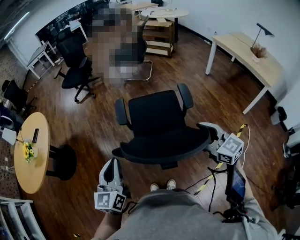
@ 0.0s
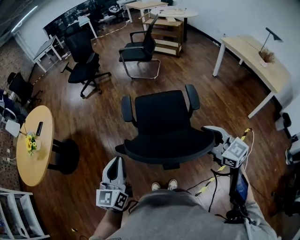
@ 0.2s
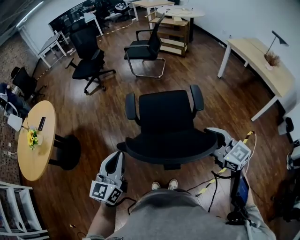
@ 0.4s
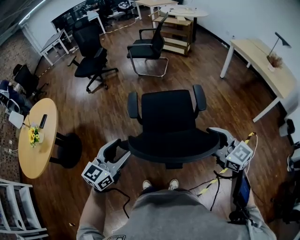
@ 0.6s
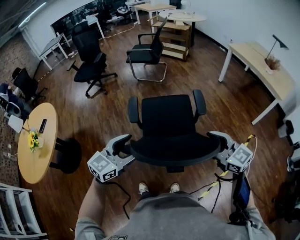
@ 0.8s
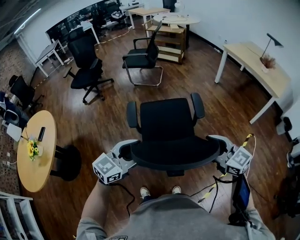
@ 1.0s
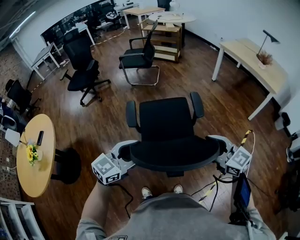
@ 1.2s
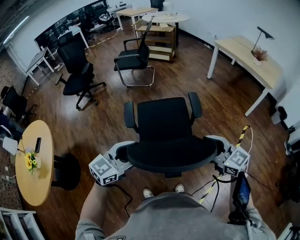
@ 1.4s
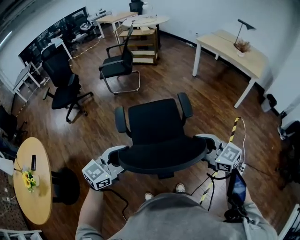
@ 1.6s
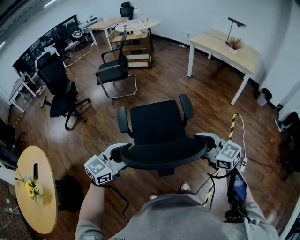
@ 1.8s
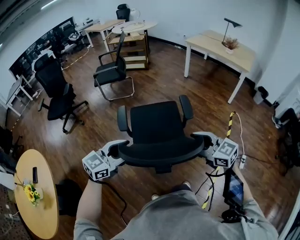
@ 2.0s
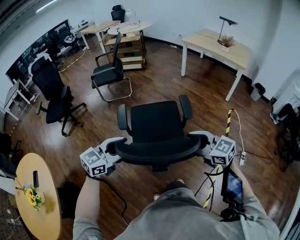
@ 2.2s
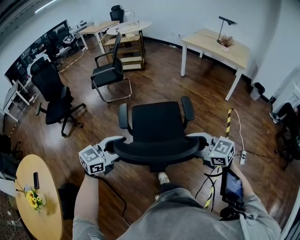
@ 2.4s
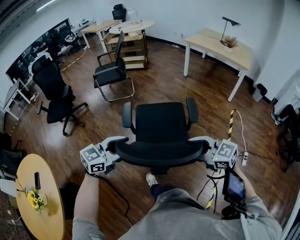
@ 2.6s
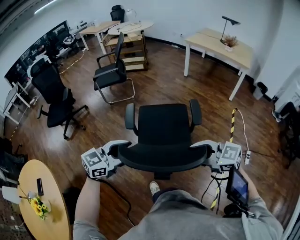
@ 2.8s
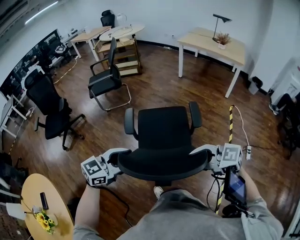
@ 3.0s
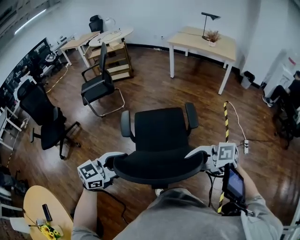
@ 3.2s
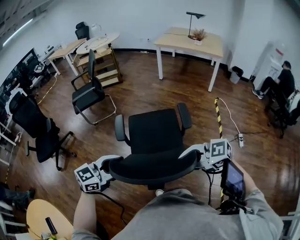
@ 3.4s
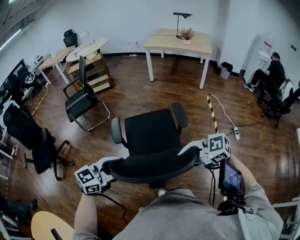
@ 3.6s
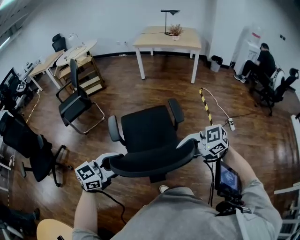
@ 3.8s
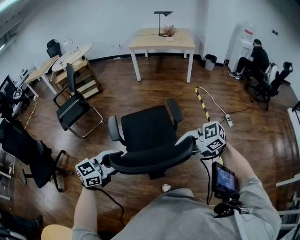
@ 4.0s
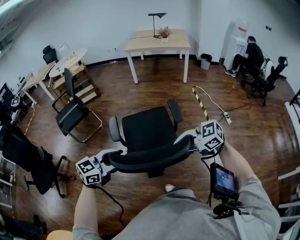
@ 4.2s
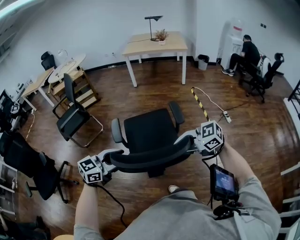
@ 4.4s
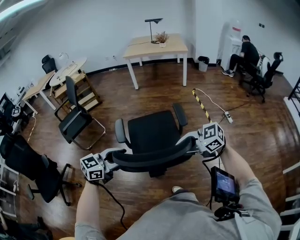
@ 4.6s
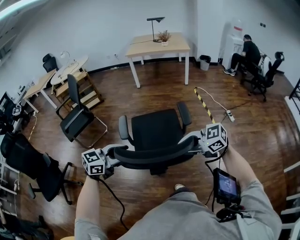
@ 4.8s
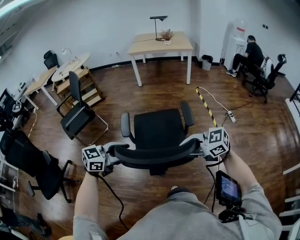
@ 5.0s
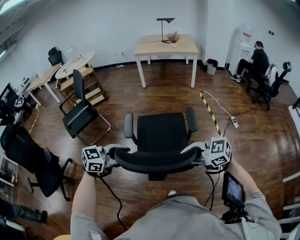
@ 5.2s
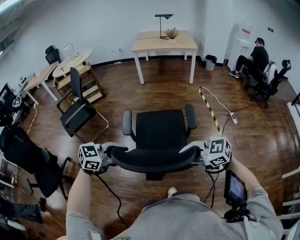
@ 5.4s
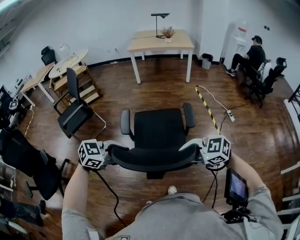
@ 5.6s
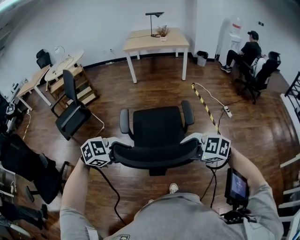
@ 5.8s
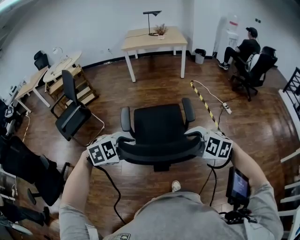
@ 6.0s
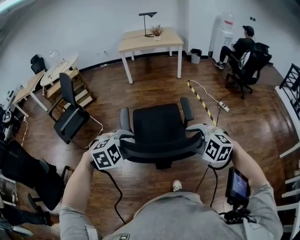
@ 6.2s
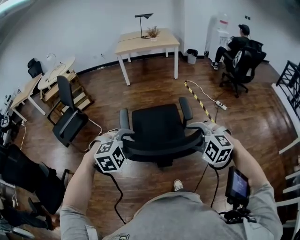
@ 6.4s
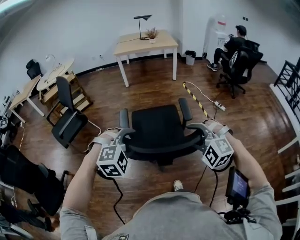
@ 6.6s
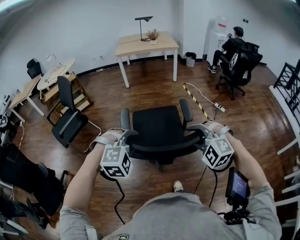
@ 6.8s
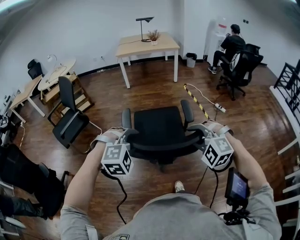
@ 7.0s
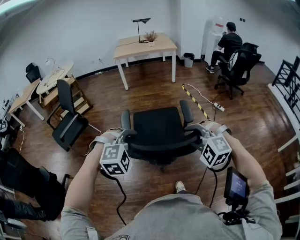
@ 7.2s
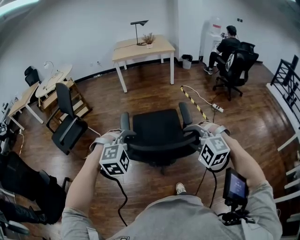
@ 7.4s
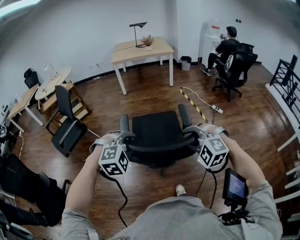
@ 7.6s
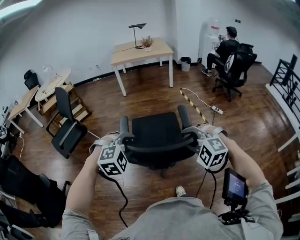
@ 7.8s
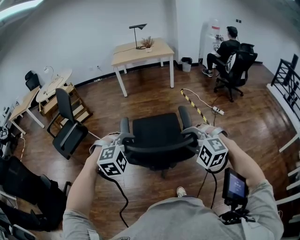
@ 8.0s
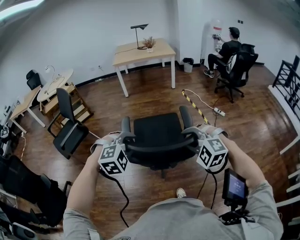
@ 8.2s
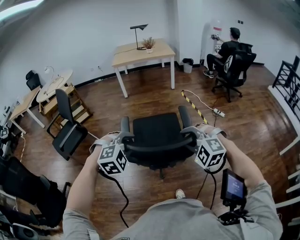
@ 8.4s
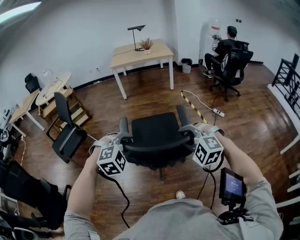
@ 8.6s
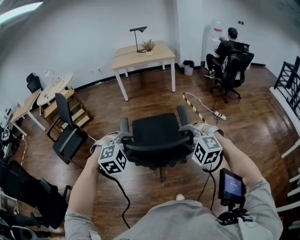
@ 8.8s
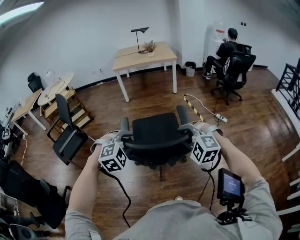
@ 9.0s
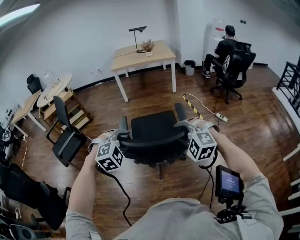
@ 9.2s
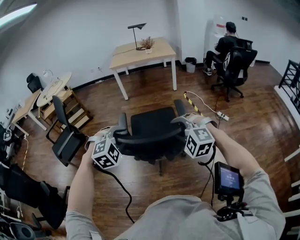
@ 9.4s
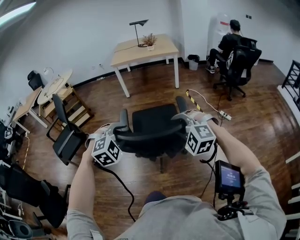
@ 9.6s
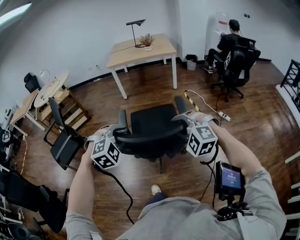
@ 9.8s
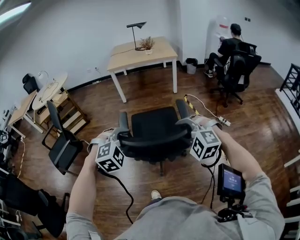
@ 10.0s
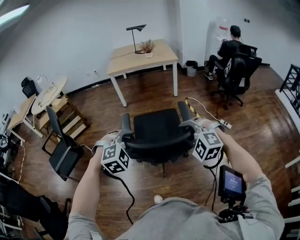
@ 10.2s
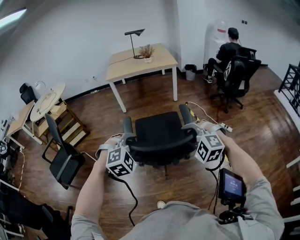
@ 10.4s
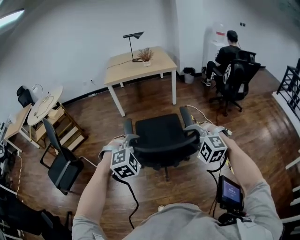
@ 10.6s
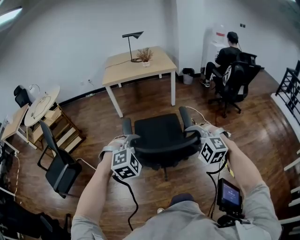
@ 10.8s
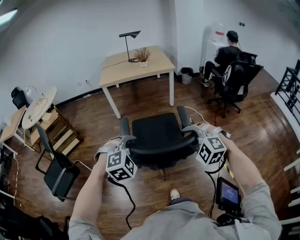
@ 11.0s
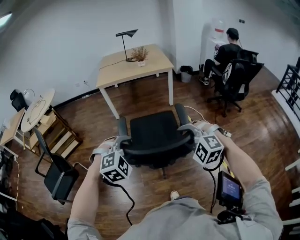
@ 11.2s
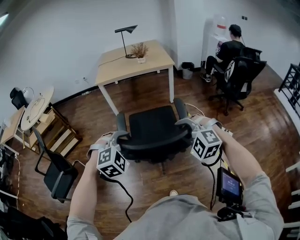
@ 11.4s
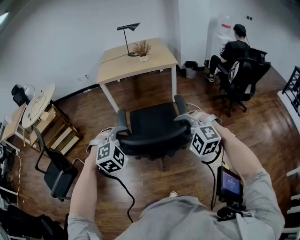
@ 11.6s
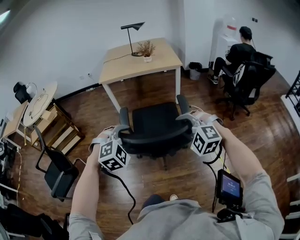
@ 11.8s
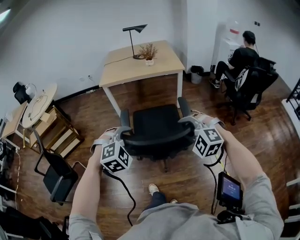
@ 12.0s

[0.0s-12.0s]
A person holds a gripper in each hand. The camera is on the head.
0.0s to 1.6s: The right gripper ends up some 10 cm from where it was. The left gripper shifts by some 10 cm, swivels about 60 degrees, and opens up.
1.6s to 3.0s: The right gripper shifts by about 20 cm, and closes, while the left gripper ends up about 15 cm from where it was, and rotates roughly 20 degrees.
3.0s to 4.4s: The right gripper changes place by some 15 cm. Meanwhile the left gripper changes place by approximately 10 cm, and swivels roughly 30 degrees.
4.4s to 6.0s: The left gripper ends up roughly 5 cm from where it was, and points its fingers roughly 40 degrees further downward; the right gripper ends up roughly 10 cm from where it was, rotates roughly 40 degrees, and opens.
6.0s to 7.6s: The right gripper shifts by approximately 5 cm, rotates about 30 degrees, and closes; the left gripper turns by approximately 30 degrees, and closes up.
7.6s to 9.0s: Both grippers move forward, roughly 10 cm.
9.0s to 10.4s: Both grippers move forward, roughly 25 cm.
10.4s to 12.0s: Both grippers travel together forward, some 30 cm.

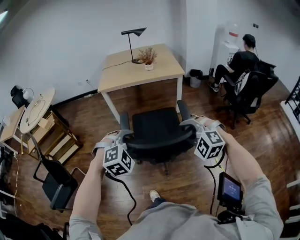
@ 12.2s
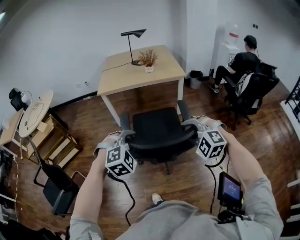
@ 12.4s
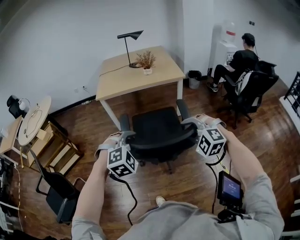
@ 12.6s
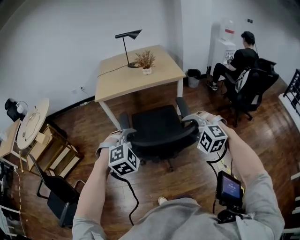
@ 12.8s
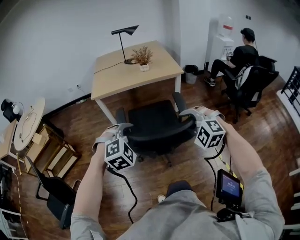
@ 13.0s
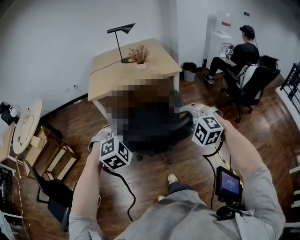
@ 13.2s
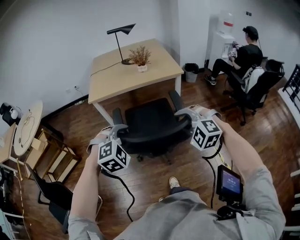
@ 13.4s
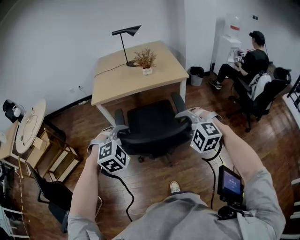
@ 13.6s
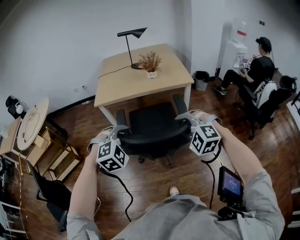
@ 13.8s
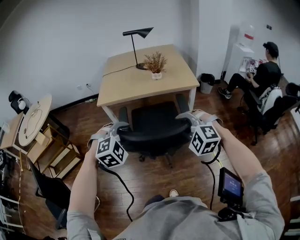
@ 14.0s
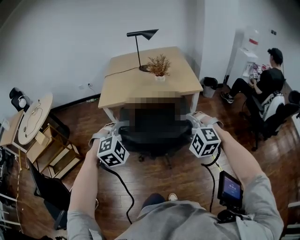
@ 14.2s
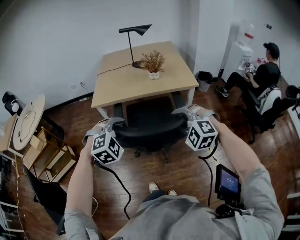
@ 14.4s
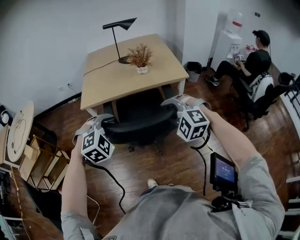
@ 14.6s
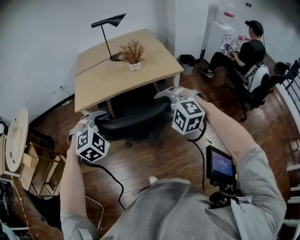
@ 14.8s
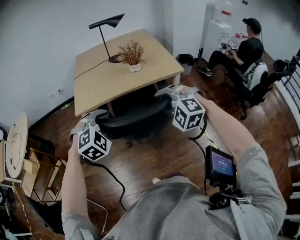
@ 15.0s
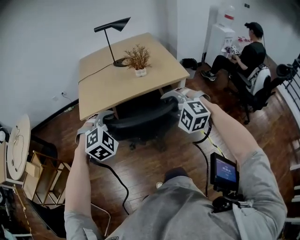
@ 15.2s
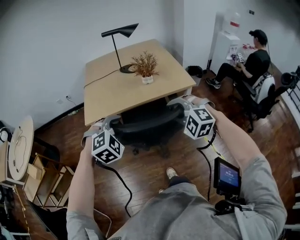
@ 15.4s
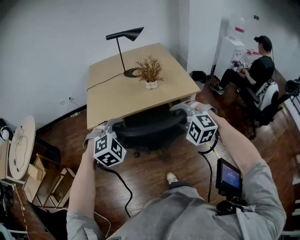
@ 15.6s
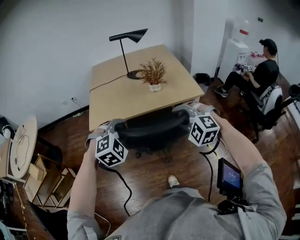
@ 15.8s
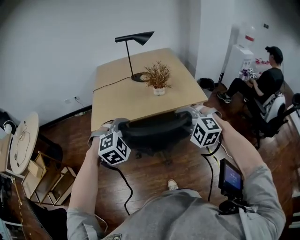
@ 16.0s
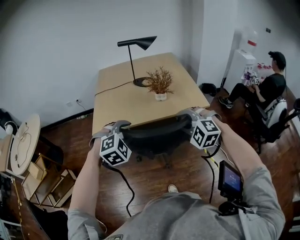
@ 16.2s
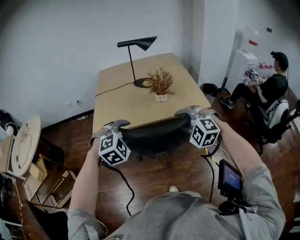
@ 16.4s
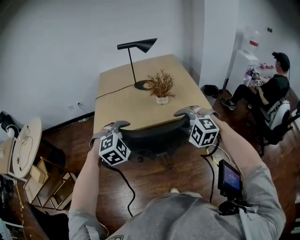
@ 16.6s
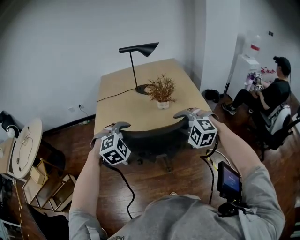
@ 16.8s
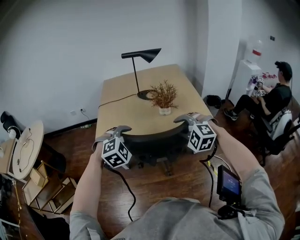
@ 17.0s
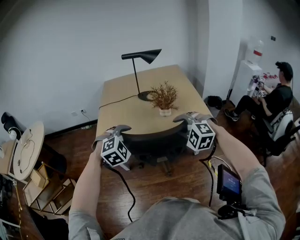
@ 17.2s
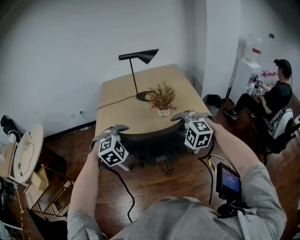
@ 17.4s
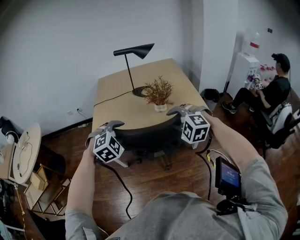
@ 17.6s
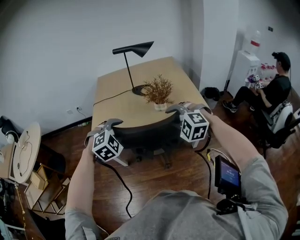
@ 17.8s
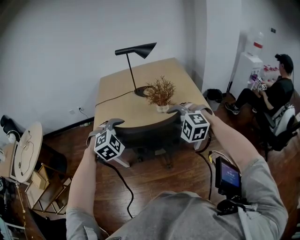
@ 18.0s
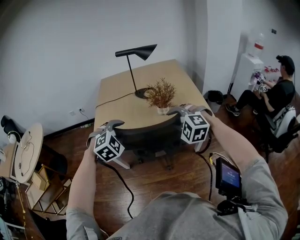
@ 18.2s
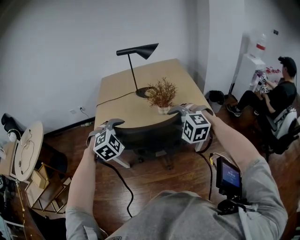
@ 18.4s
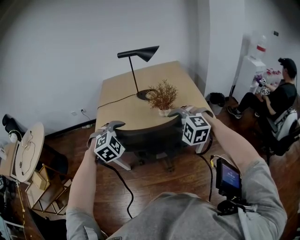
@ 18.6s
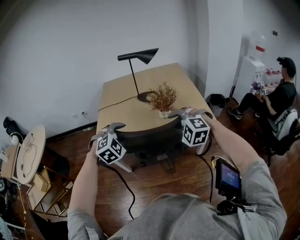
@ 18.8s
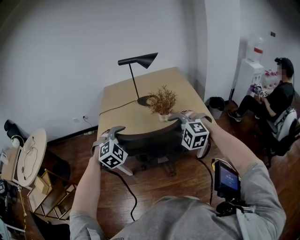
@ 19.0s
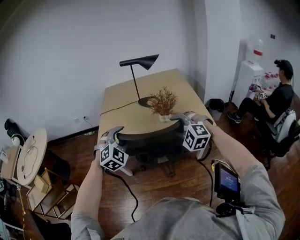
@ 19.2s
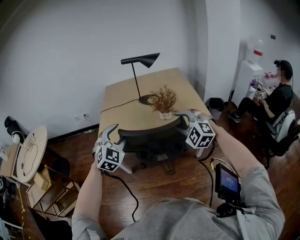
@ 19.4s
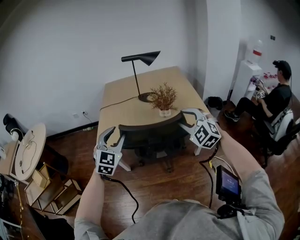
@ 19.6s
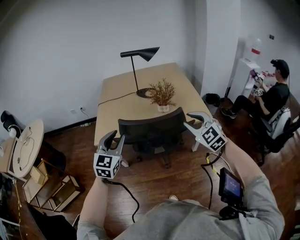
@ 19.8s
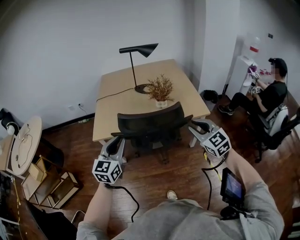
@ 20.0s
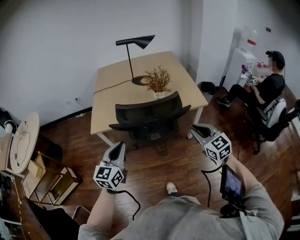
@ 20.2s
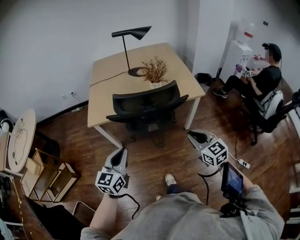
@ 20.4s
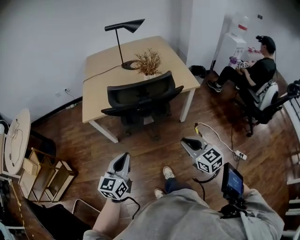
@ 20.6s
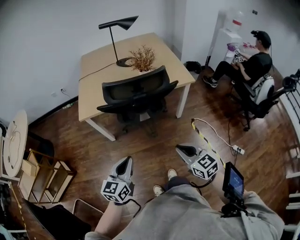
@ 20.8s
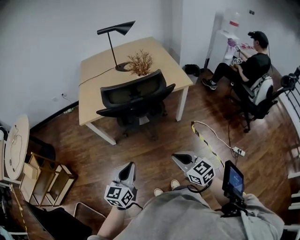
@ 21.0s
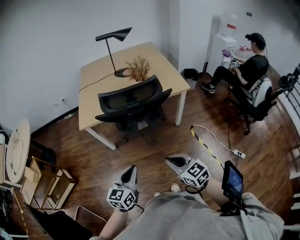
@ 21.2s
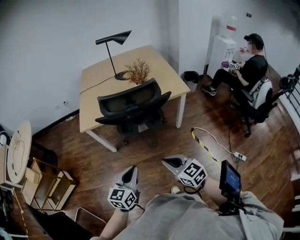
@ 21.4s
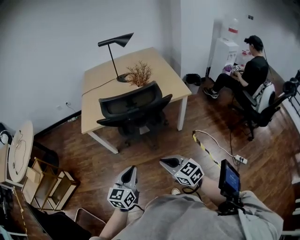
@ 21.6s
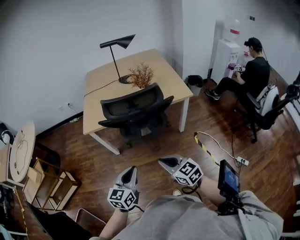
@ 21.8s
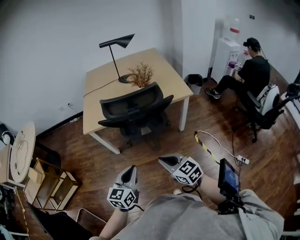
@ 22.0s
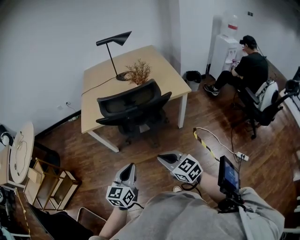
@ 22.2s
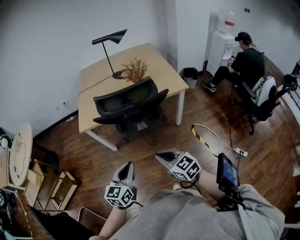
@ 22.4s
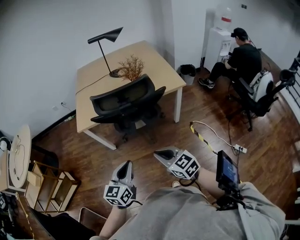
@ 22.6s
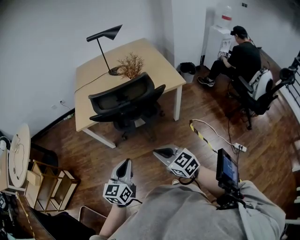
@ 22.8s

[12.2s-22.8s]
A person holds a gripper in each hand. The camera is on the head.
12.2s to 13.8s: Both grippers travel together forward, roughly 25 cm.
13.8s to 15.2s: Both grippers travel together forward, some 20 cm.
15.2s to 16.8s: The grippers both shift forward by some 15 cm.
16.8s to 18.2s: The two grippers go roughly 10 cm forward.
18.2s to 19.8s: The right gripper shifts about 10 cm backward and to the right, and turns by some 40 degrees, while the left gripper moves backward and to the left, approximately 10 cm, and angles its fingers upward, by about 30 degrees.
19.8s to 21.2s: The grippers both shift backward and downward by approximately 30 cm. The left gripper changes its angle by roughly 30 degrees, and closes, while the right gripper swivels some 40 degrees, and closes up.
21.2s to 22.8s: There are only small adjustments of the grippers.

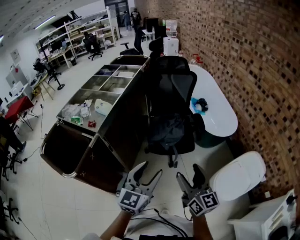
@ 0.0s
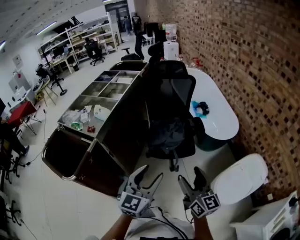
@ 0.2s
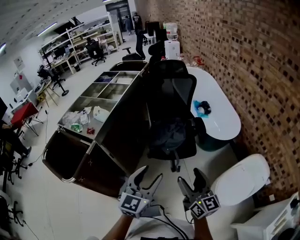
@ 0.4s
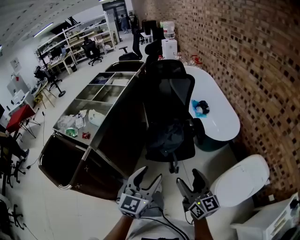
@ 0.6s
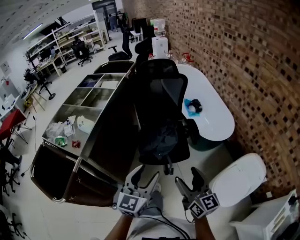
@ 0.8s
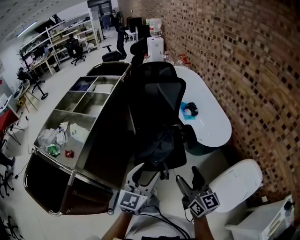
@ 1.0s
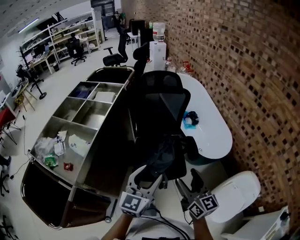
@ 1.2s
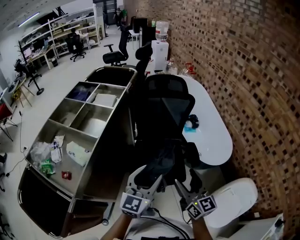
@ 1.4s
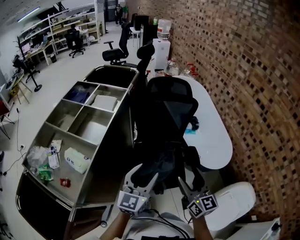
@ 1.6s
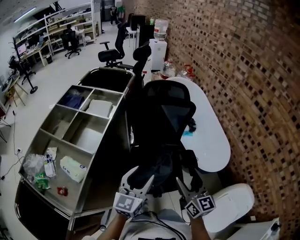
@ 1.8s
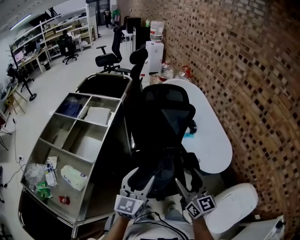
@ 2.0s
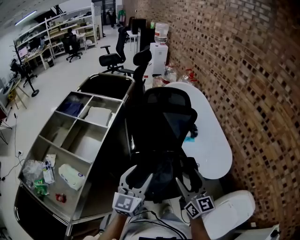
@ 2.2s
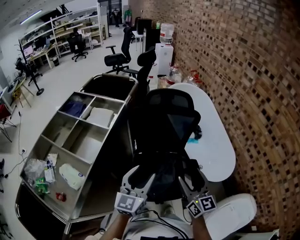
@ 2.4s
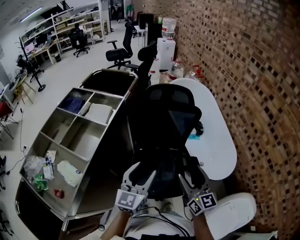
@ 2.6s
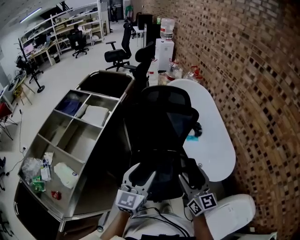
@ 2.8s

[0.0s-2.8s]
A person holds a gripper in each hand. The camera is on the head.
0.0s to 1.4s: Both grippers travel together forward, approximately 35 cm.
1.4s to 2.8s: The two grippers go approximately 20 cm forward.
